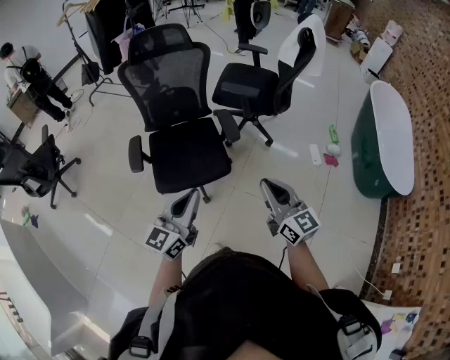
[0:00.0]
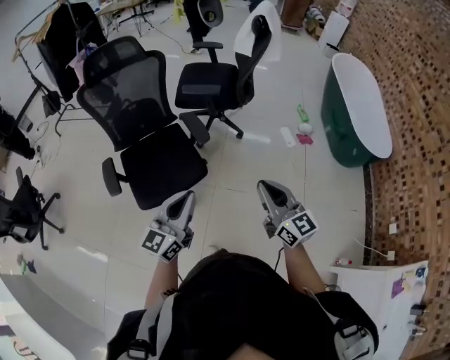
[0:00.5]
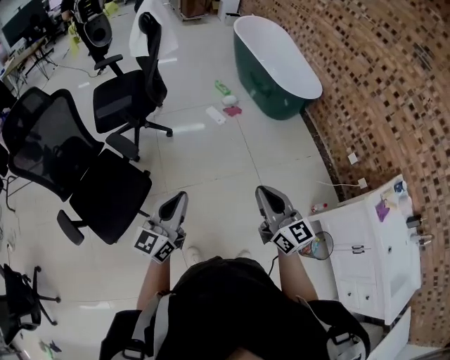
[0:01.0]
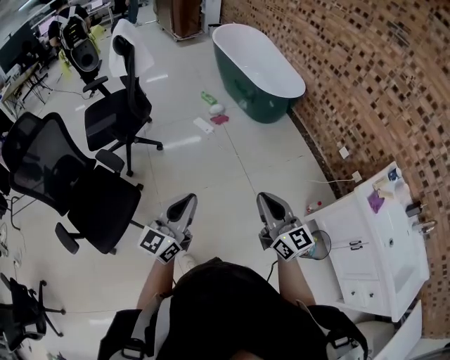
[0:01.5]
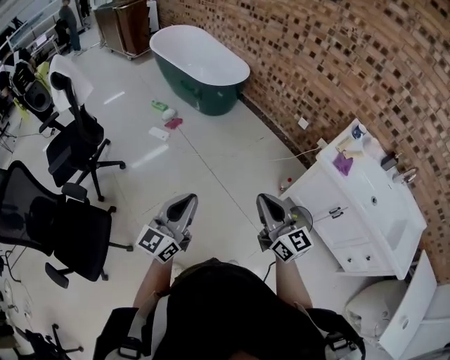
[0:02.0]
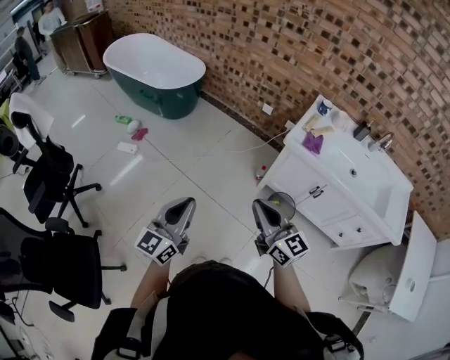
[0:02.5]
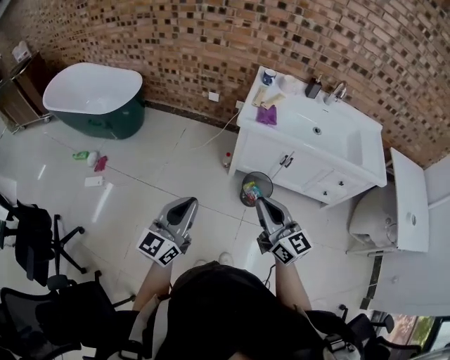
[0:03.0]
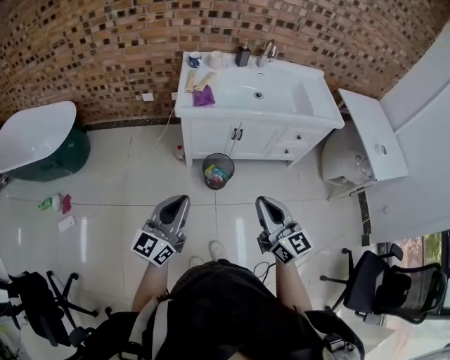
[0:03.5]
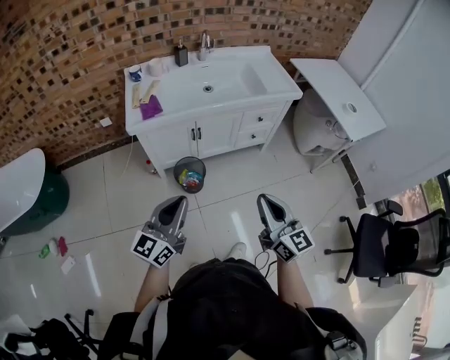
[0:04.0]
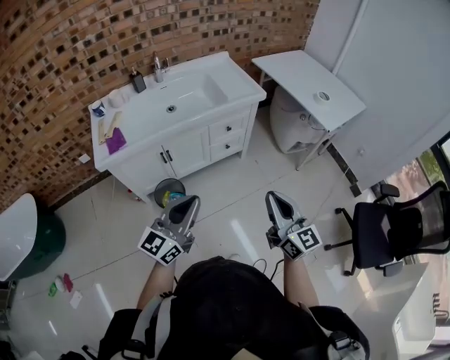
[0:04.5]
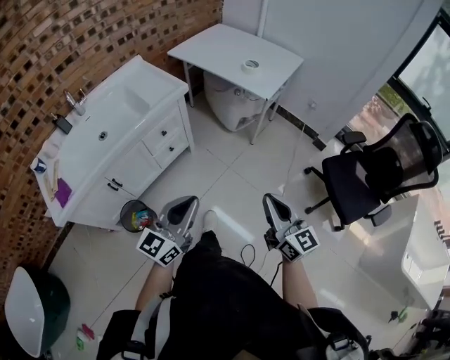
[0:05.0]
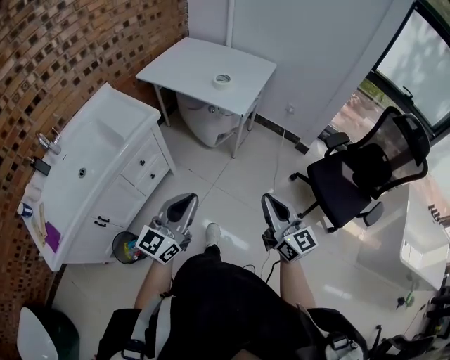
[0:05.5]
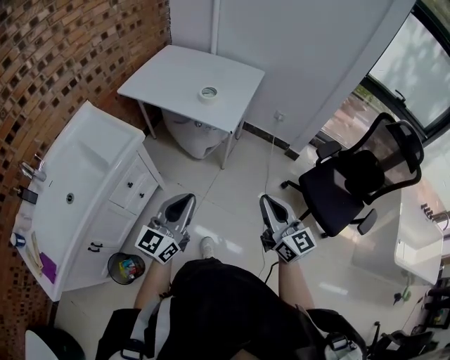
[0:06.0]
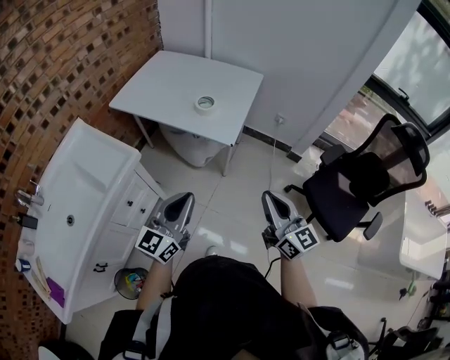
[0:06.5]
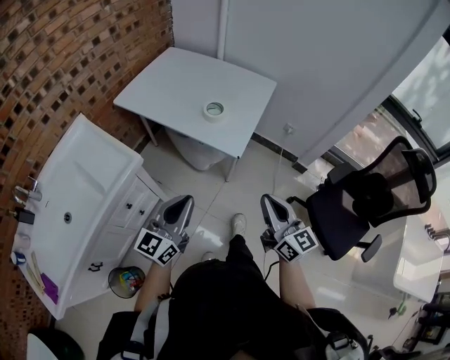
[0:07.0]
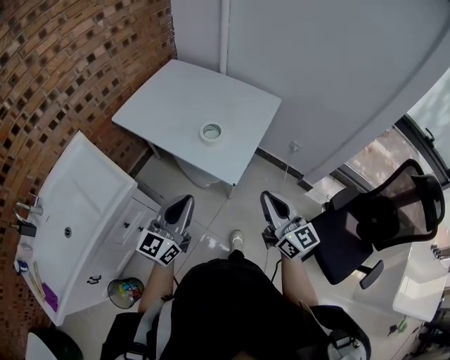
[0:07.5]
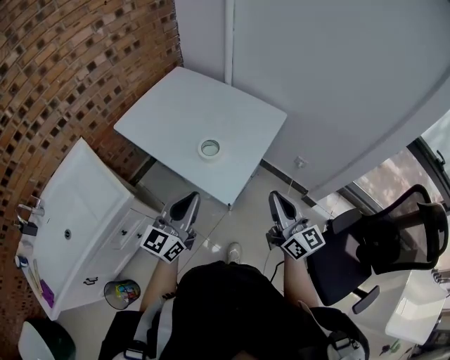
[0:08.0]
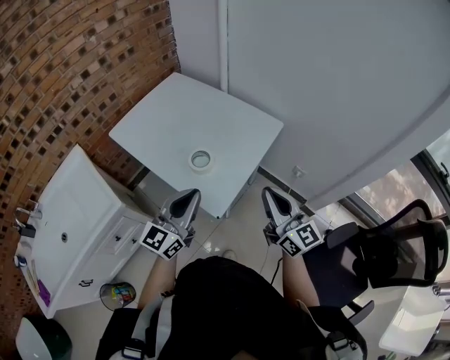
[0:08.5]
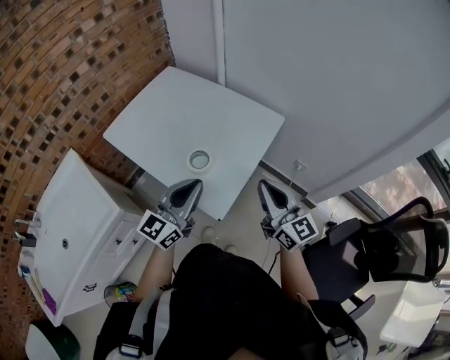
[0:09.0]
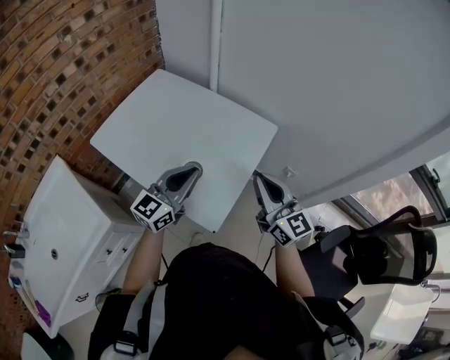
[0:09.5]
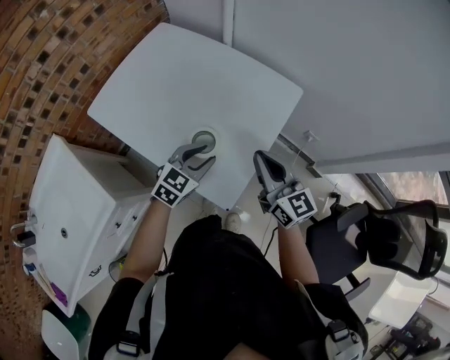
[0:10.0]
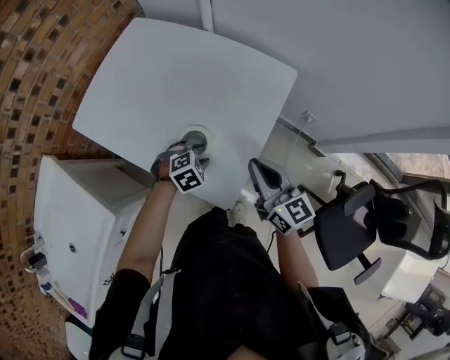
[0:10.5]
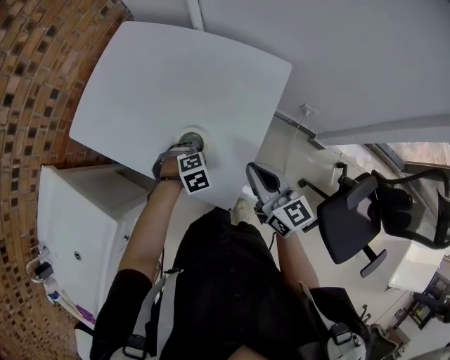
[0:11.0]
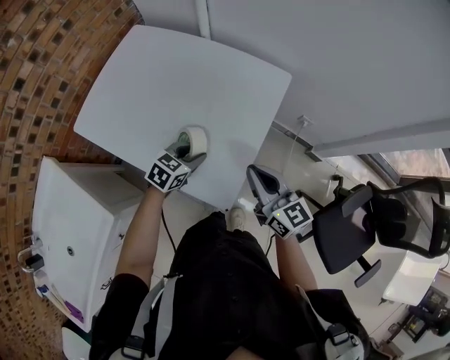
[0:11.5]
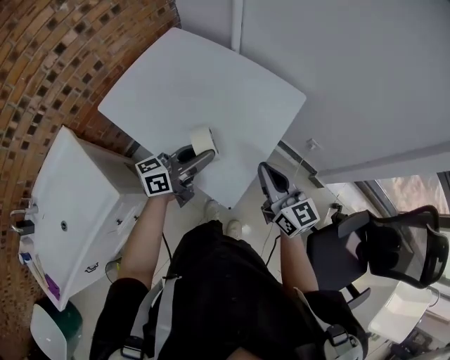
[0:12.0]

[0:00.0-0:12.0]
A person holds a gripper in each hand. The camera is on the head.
0:00.0 to 0:02.0: The two grippers travel together, about 50 cm. The left gripper swivels approximately 70 degrees; the right gripper swivels about 60 degrees.
0:02.0 to 0:04.0: The left gripper shifts by about 40 cm, and rotates about 70 degrees. Meanwhile the right gripper shifts by about 40 cm, and rotates roughly 70 degrees.
0:04.0 to 0:06.0: Both grippers are carried approximately 50 cm. The left gripper rotates approximately 50 degrees; the right gripper swivels about 40 degrees.
0:06.0 to 0:08.0: The two grippers go approximately 35 cm forward.
0:08.0 to 0:10.0: The left gripper travels forward and downward by about 30 cm, angles its fingers downward, by roughly 40 degrees, and opens up, while the right gripper shifts some 20 cm forward.
0:10.0 to 0:12.0: The left gripper heads upward, covering some 10 cm, and points its fingers some 40 degrees further upward.

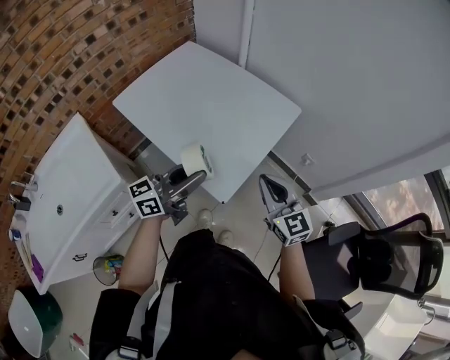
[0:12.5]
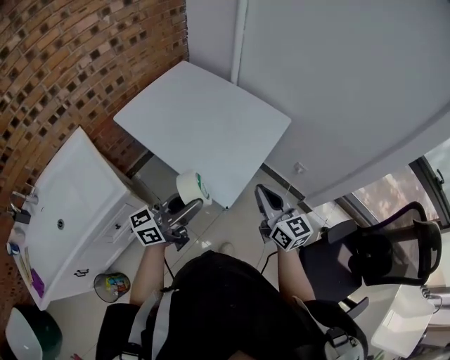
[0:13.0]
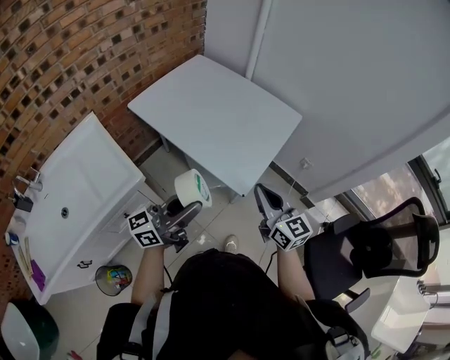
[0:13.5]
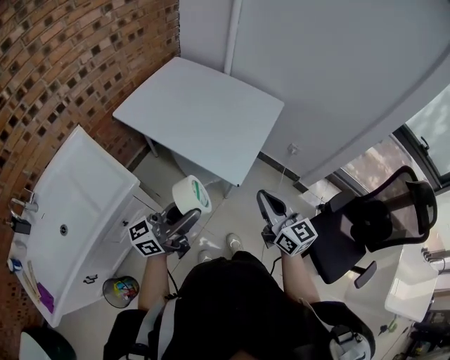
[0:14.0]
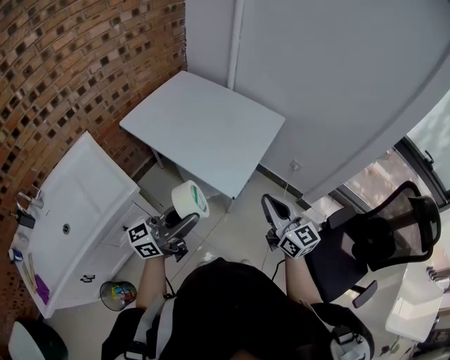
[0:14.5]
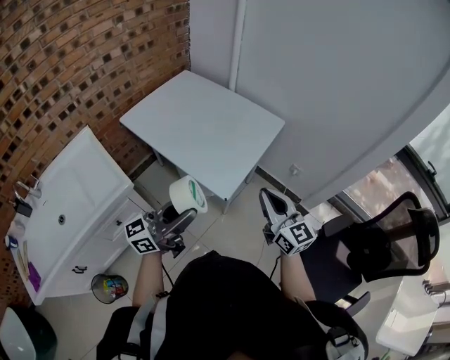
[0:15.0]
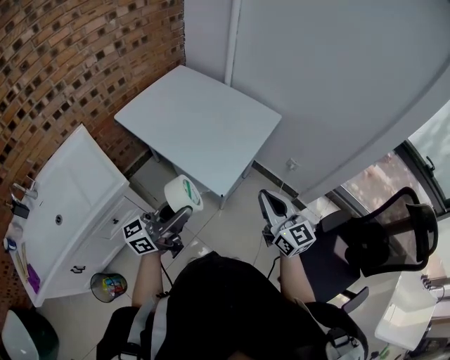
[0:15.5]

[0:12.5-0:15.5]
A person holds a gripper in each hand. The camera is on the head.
0:12.5 to 0:14.0: The two grippers go roughly 20 cm backward.
0:14.0 to 0:15.5: Both grippers travel together to the right, approximately 5 cm.

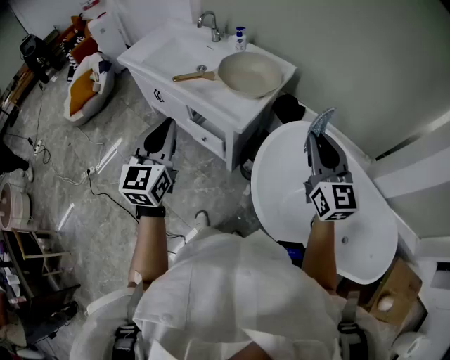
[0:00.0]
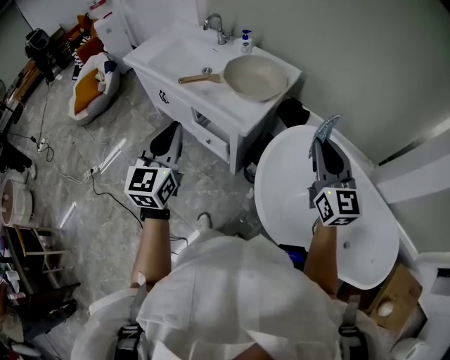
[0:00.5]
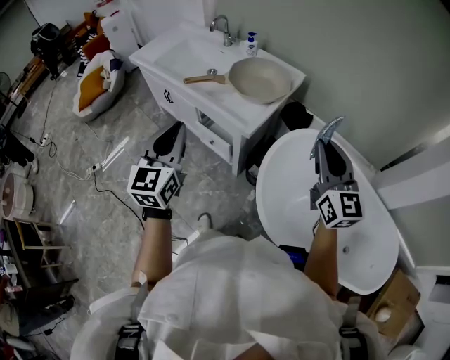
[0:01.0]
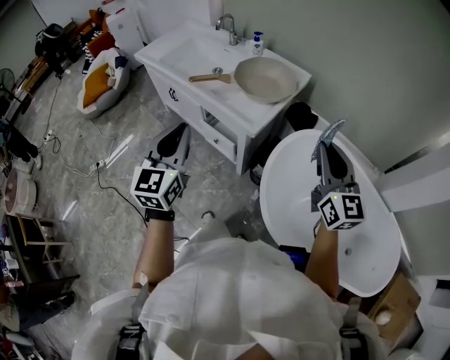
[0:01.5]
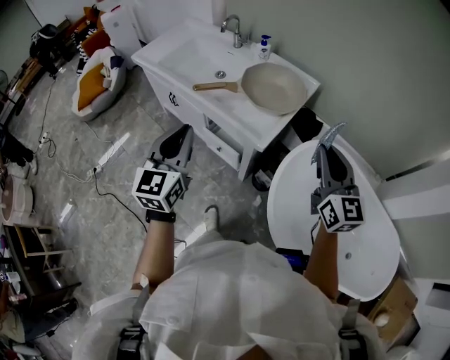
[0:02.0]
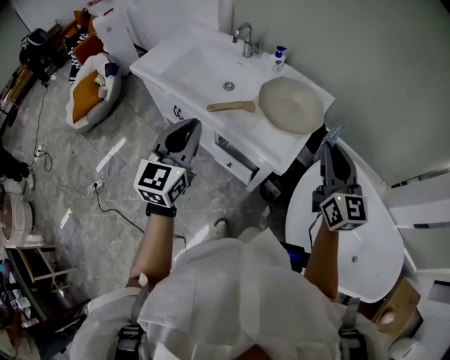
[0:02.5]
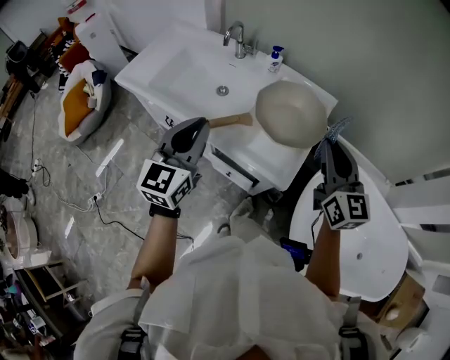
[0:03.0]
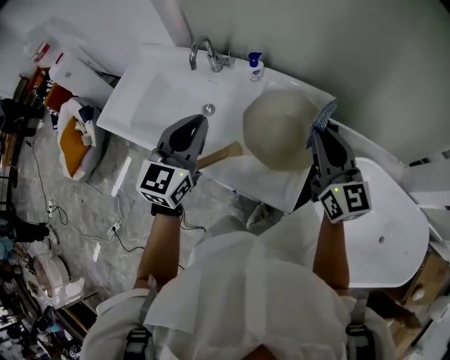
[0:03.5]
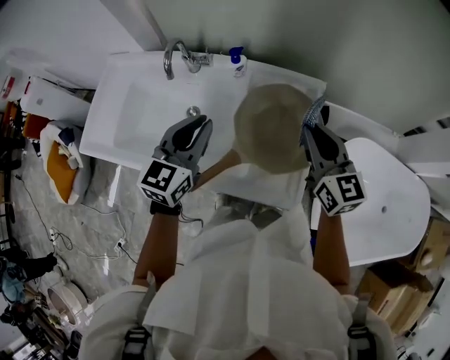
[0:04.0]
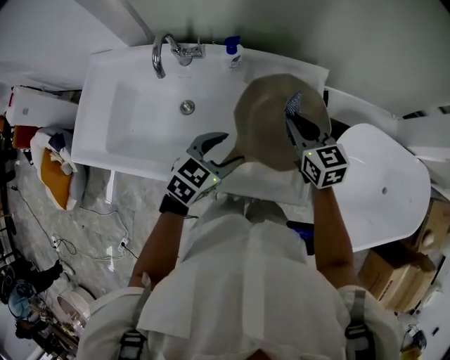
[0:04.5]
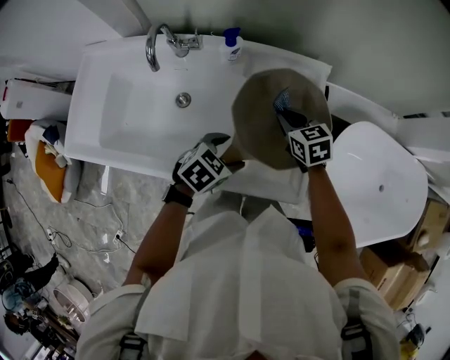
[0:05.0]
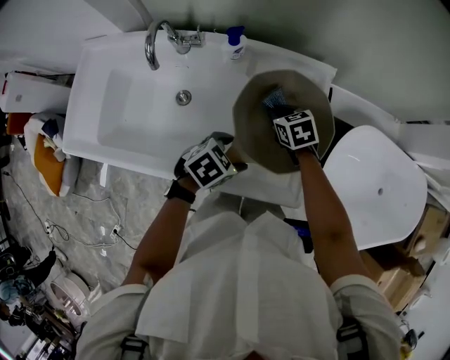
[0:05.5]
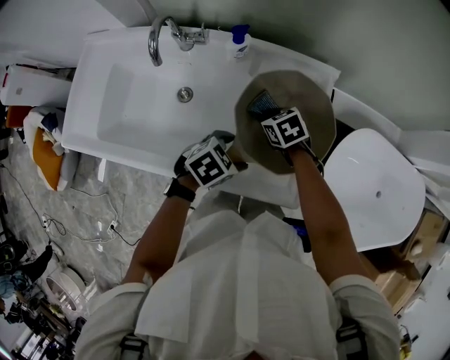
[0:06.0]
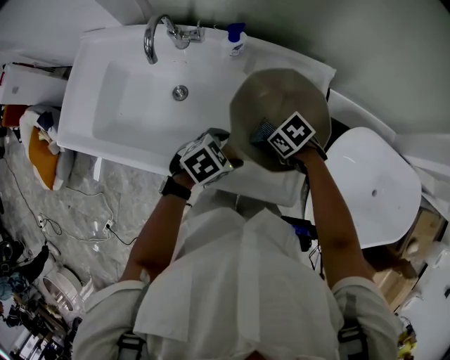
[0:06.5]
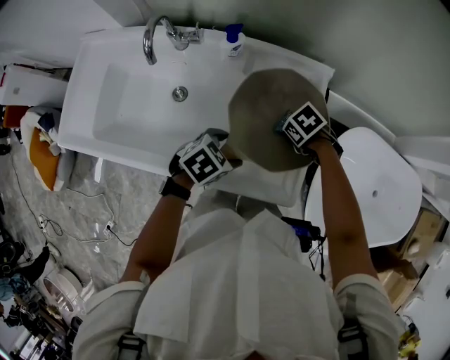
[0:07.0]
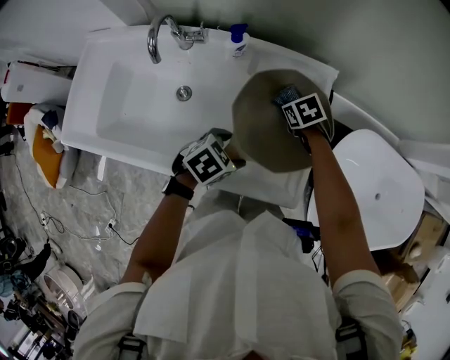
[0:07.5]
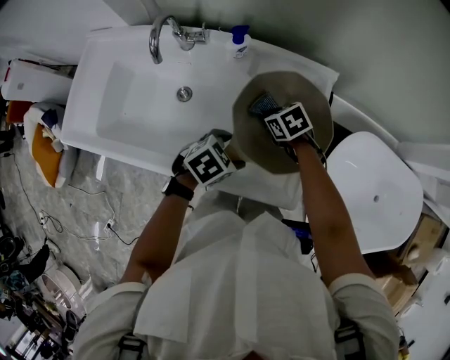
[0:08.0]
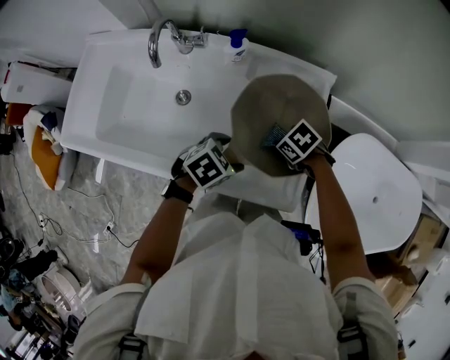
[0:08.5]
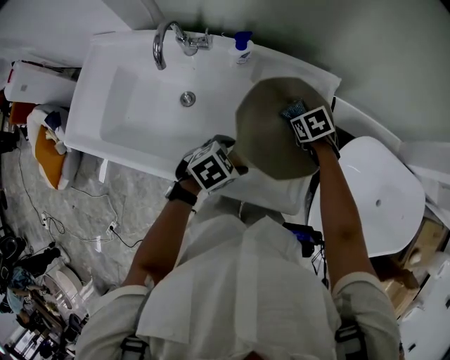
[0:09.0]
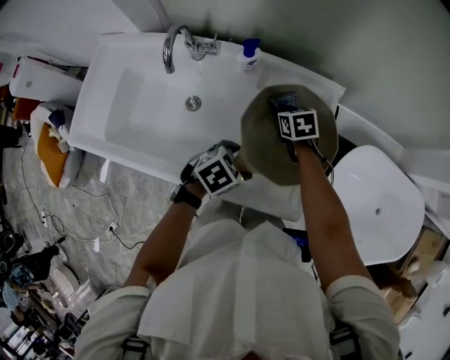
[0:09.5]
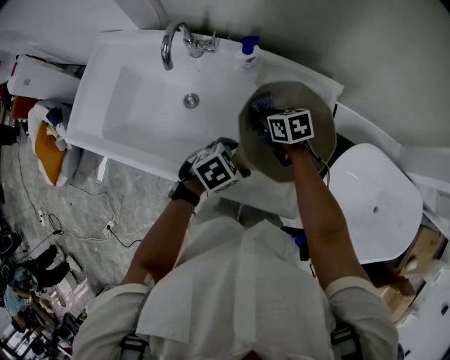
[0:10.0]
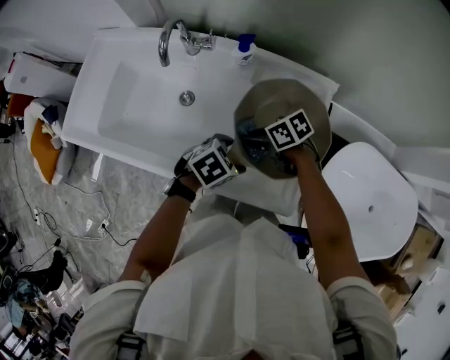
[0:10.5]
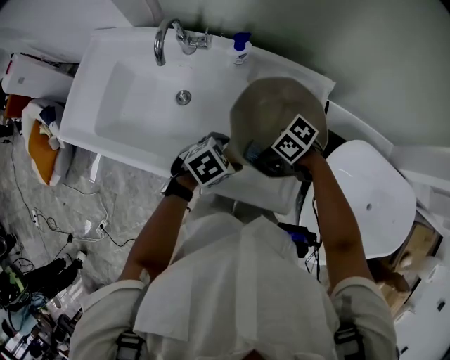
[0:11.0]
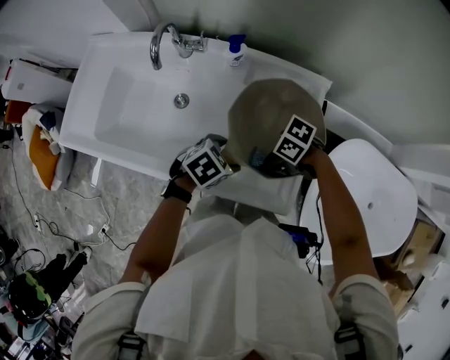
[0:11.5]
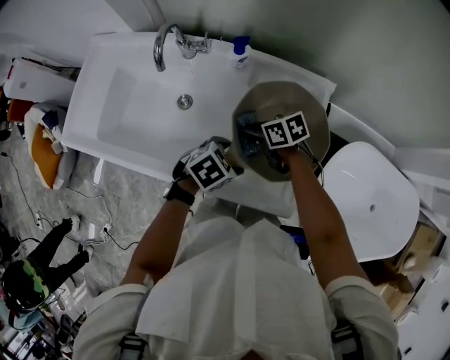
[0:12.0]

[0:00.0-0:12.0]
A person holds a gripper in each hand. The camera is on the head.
0:00.0 to 0:02.0: The right gripper shifts some 10 cm forward and to the left. Meanwhile the left gripper travels forward by roughly 5 cm.
0:02.0 to 0:04.0: The left gripper ends up approximately 40 cm from where it was, and swivels approximately 40 degrees. Meanwhile the right gripper shifts by about 35 cm.
0:04.0 to 0:06.0: Both grippers travel together downward, about 25 cm. The left gripper angles its fingers downward, by approximately 40 degrees, and opens up. Meanwhile the right gripper angles its fingers downward, by some 50 degrees.
